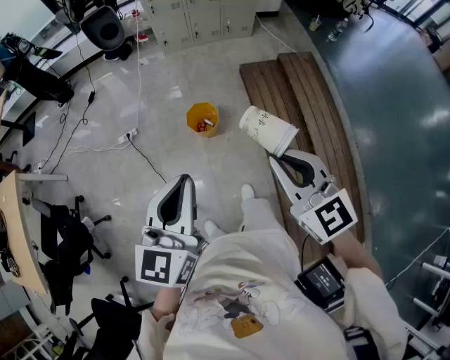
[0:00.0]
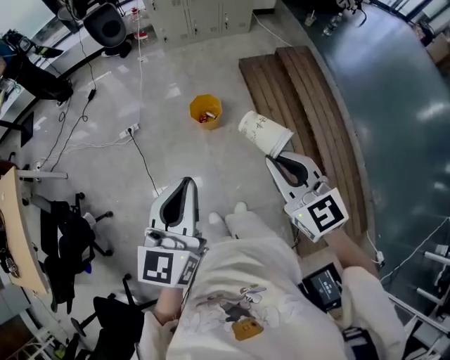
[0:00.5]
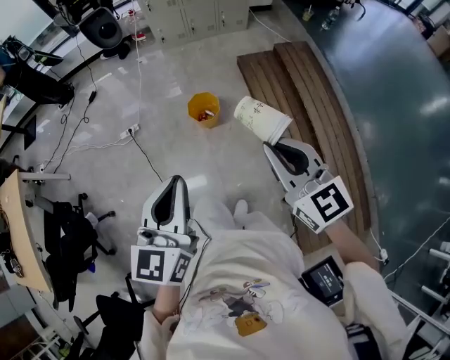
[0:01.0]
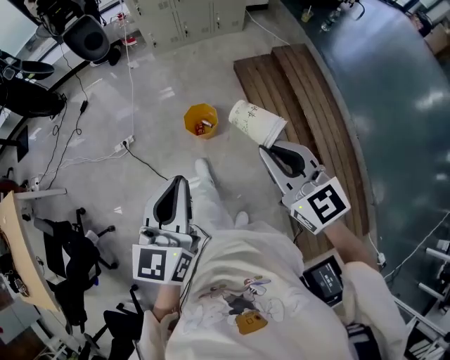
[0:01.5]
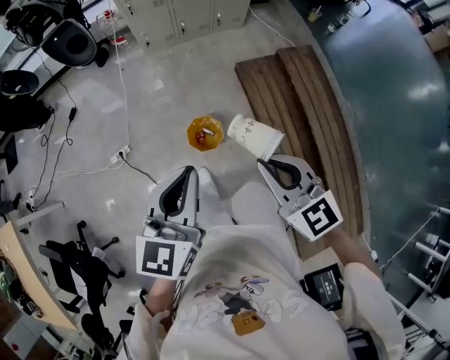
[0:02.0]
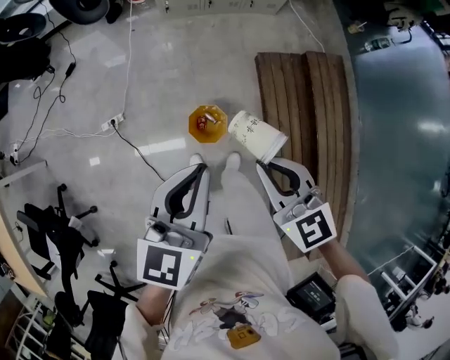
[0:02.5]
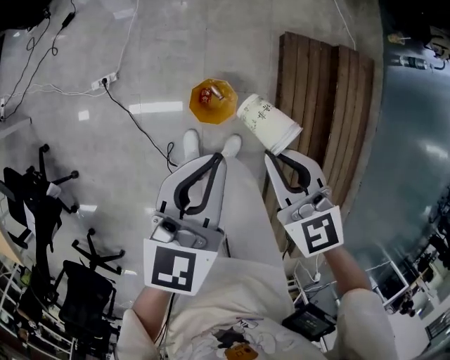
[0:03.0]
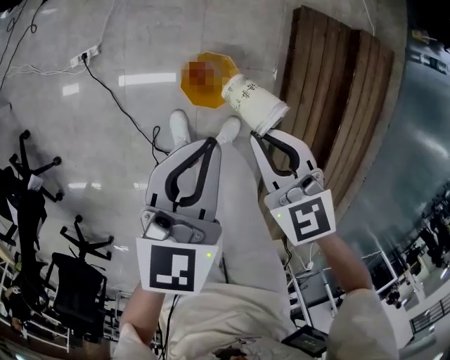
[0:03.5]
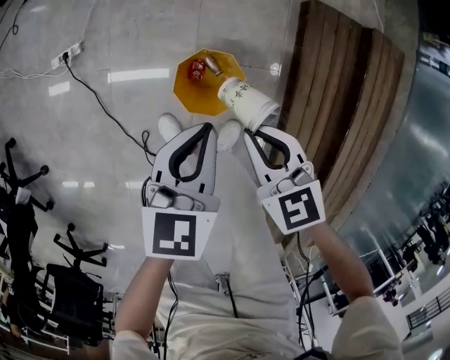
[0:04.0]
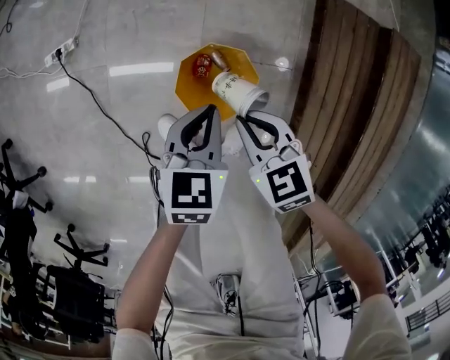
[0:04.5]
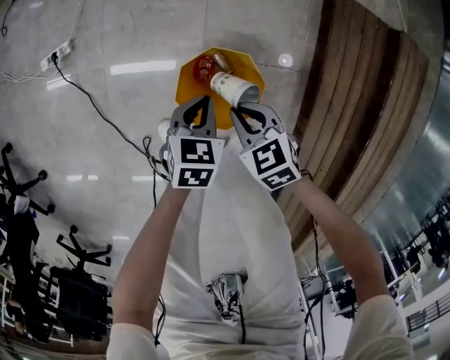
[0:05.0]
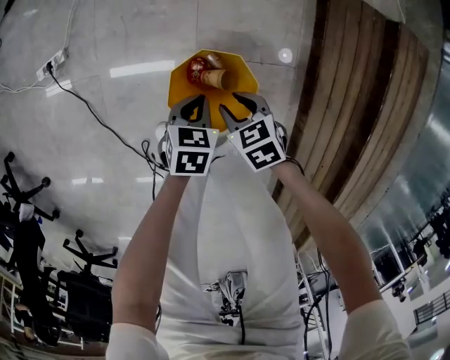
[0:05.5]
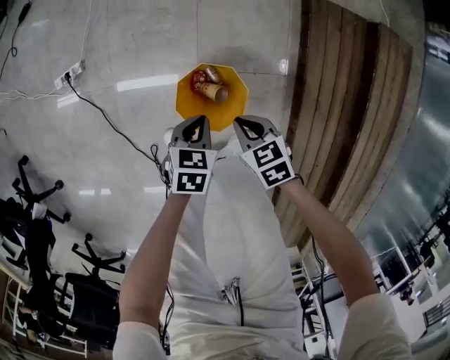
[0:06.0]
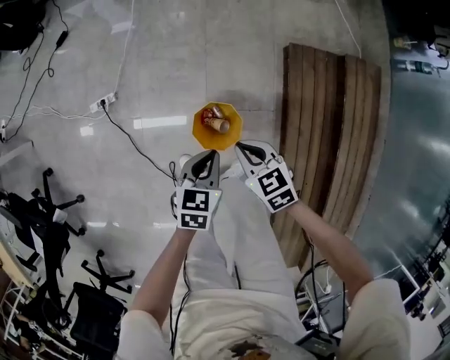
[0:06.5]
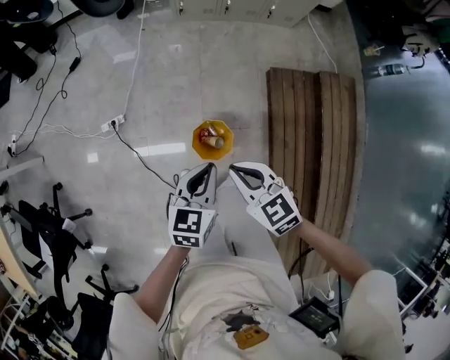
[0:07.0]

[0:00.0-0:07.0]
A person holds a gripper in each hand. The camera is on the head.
0:00.0 to 0:02.0: Both grippers travel together forward, about 30 cm.
0:02.0 to 0:03.5: The two grippers go approximately 40 cm downward and forward. The right gripper changes its angle by about 20 degrees, while the left gripper rotates roughly 20 degrees.
0:03.5 to 0:05.0: Both grippers move downward, approximately 40 cm. The left gripper rotates roughly 20 degrees. Meanwhile the right gripper rotates roughly 20 degrees.
0:05.0 to 0:07.0: The grippers both shift upward by roughly 50 cm. The right gripper turns by about 20 degrees, and opens, then closes once more; the left gripper rotates approximately 20 degrees.

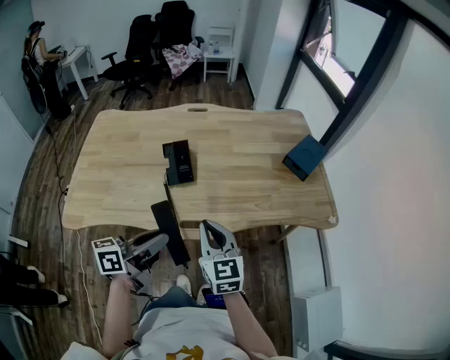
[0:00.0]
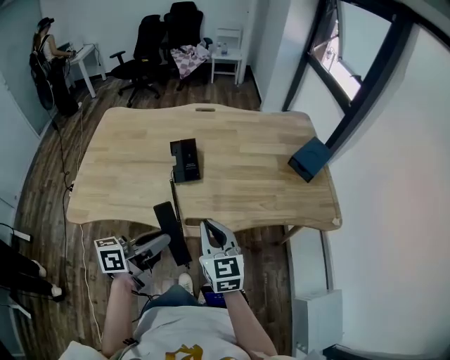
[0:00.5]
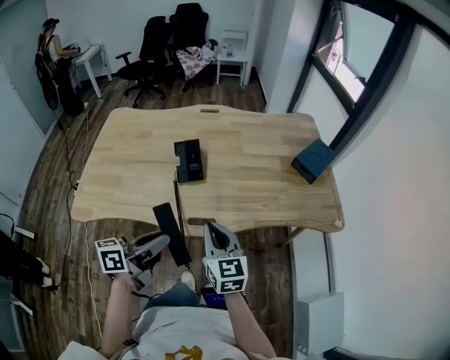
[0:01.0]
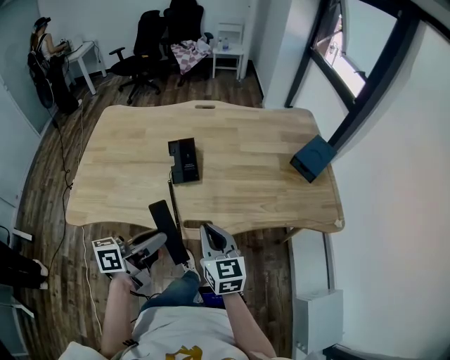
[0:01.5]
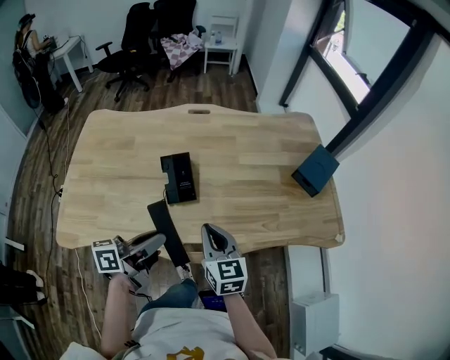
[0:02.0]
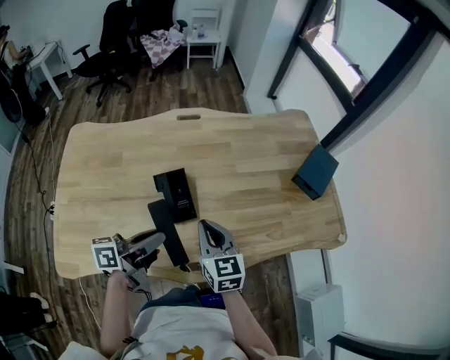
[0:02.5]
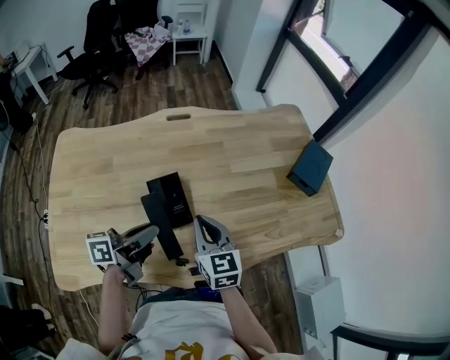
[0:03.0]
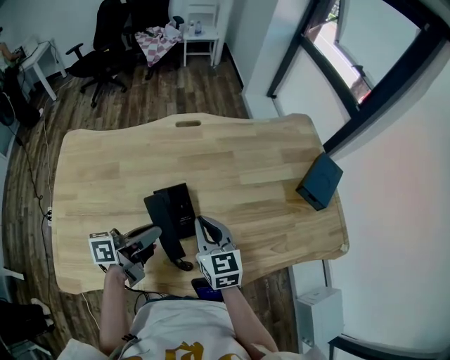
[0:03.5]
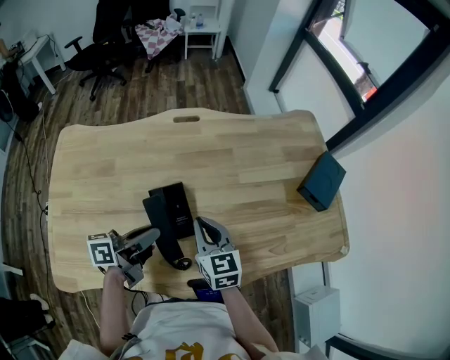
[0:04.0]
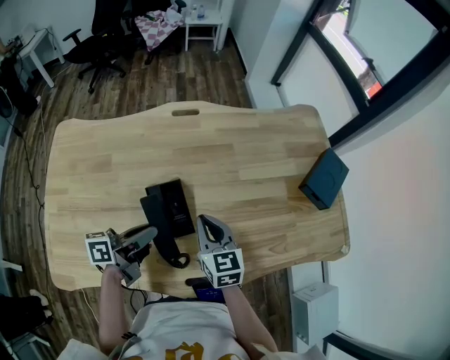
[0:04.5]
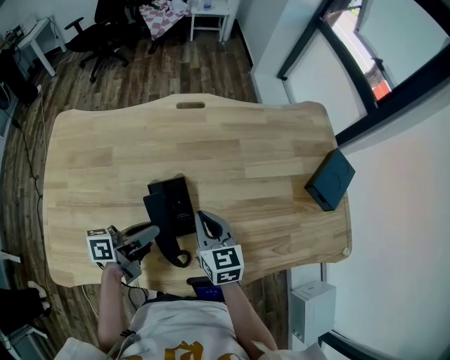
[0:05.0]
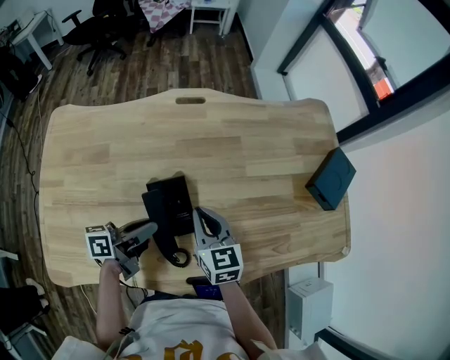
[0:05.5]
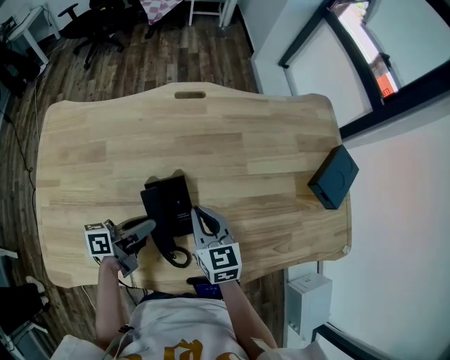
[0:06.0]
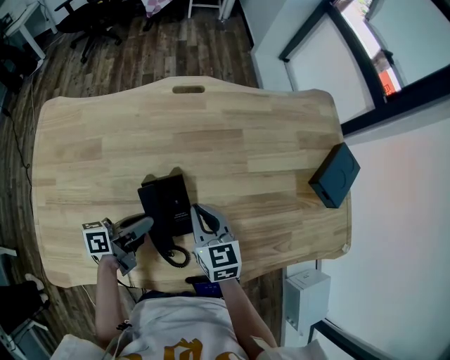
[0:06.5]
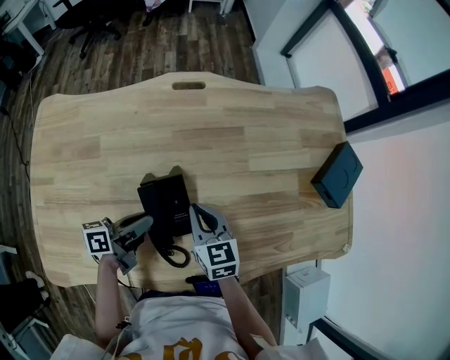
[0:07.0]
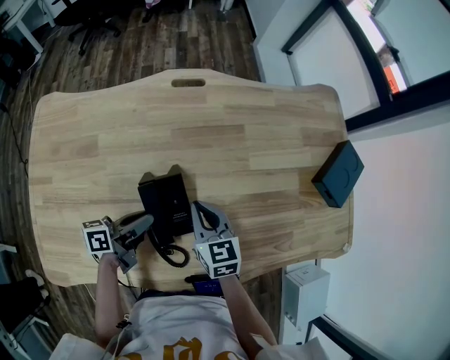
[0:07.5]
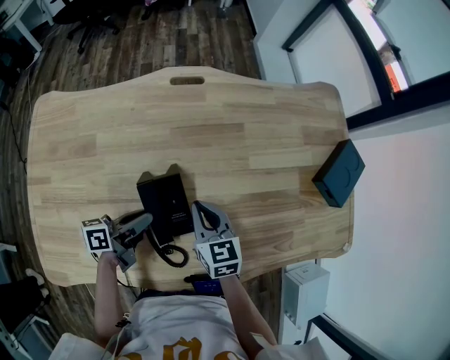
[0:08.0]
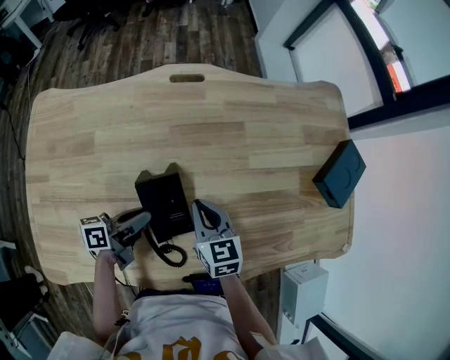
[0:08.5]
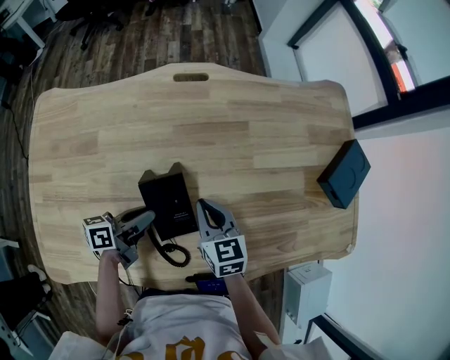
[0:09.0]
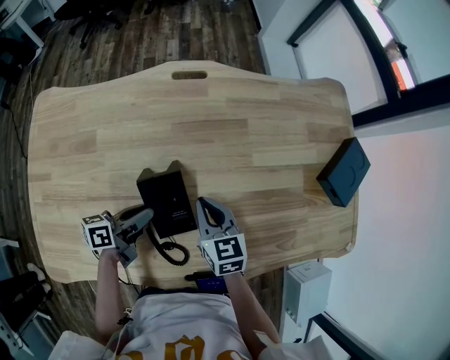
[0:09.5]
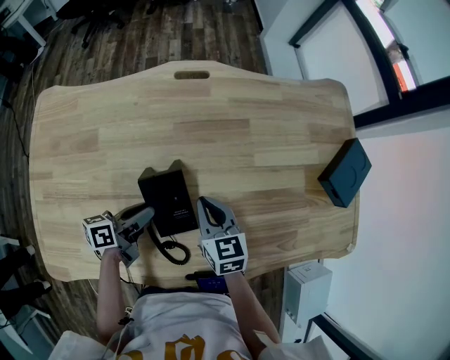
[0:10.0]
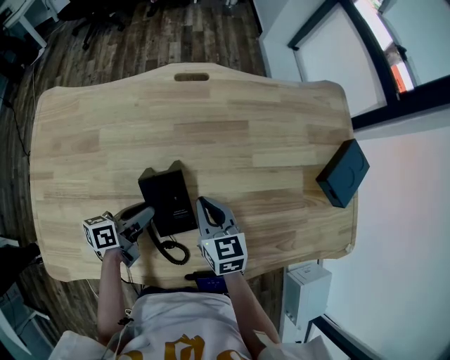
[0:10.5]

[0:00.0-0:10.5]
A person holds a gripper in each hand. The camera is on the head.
0:00.0 to 0:02.0: The left gripper is displaced forward and to the left by some 10 cm; the right gripper moves forward, about 10 cm.
0:02.0 to 0:04.0: Both grippers move forward and to the left, roughly 20 cm.
0:04.0 to 0:06.5: The right gripper is displaced downward by roughly 5 cm. The left gripper travels downward by roughly 10 cm.
0:06.5 to 0:10.5: The grippers move only a little.

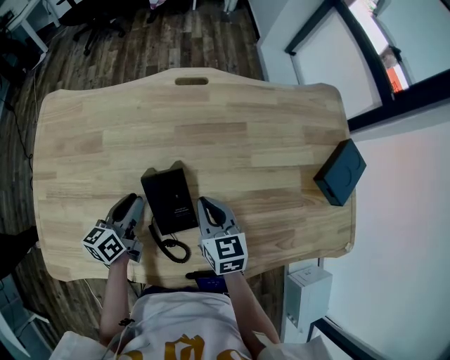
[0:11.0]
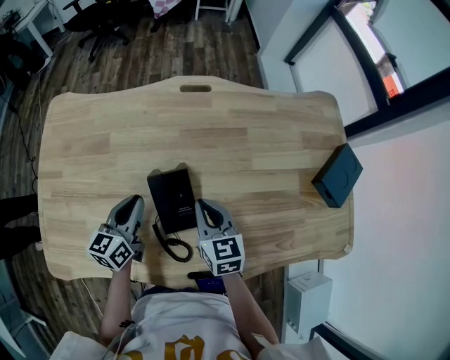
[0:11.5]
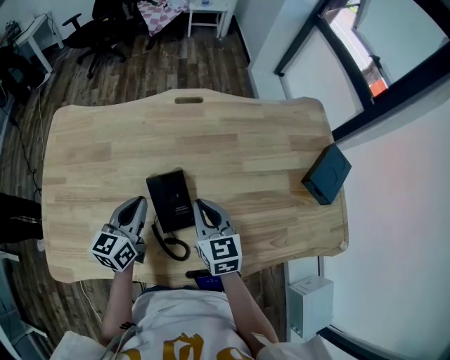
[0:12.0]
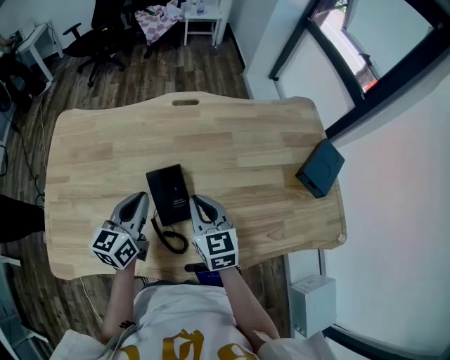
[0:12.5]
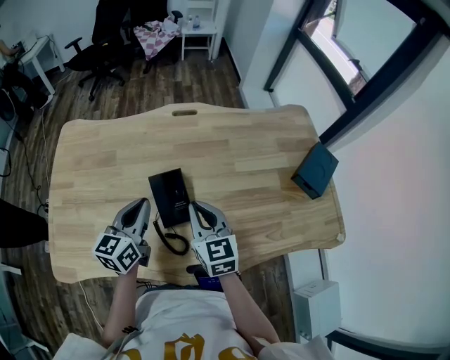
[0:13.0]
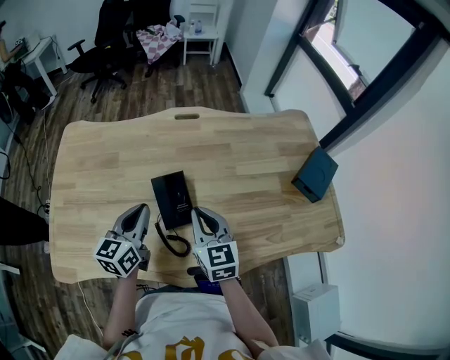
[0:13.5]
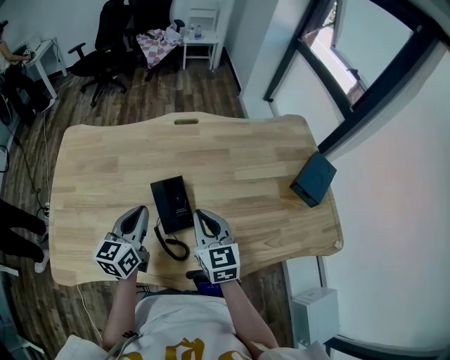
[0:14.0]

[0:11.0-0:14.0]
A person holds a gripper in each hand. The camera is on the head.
0:11.0 to 0:12.5: The grippers both shift upward by approximately 10 cm. The left gripper rotates roughly 20 degrees, and closes up.
0:12.5 to 0:14.0: The grippers make only small movements.

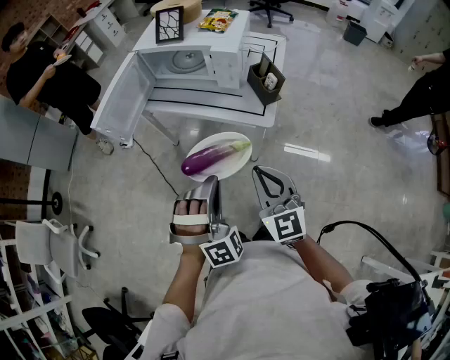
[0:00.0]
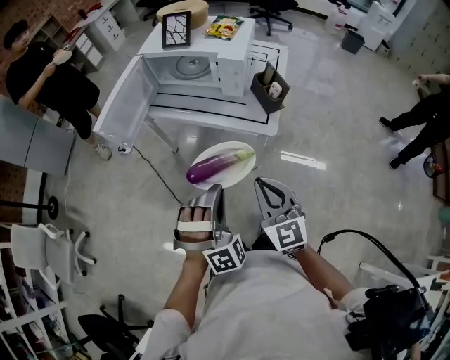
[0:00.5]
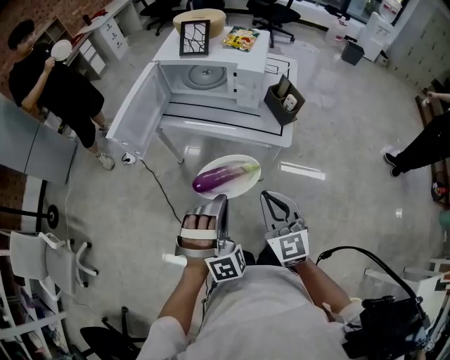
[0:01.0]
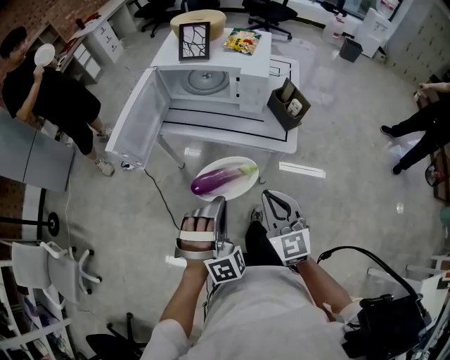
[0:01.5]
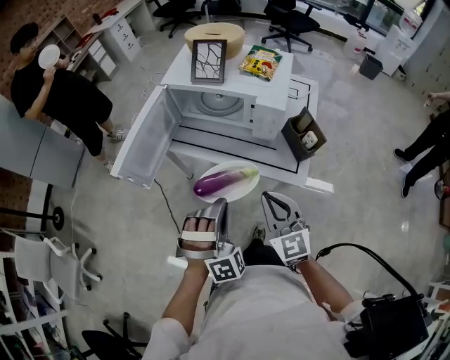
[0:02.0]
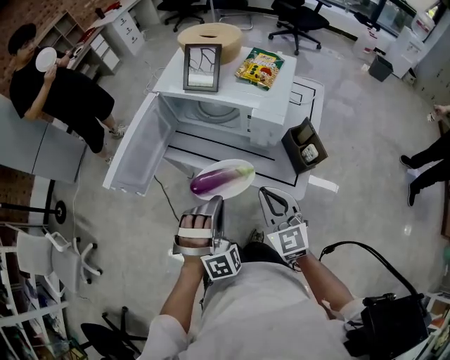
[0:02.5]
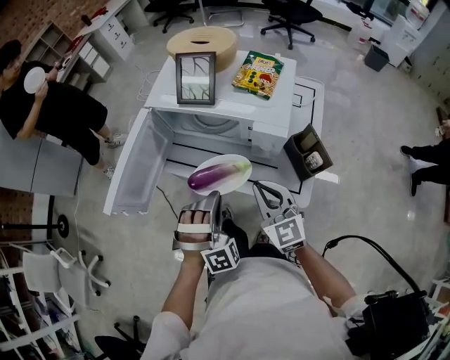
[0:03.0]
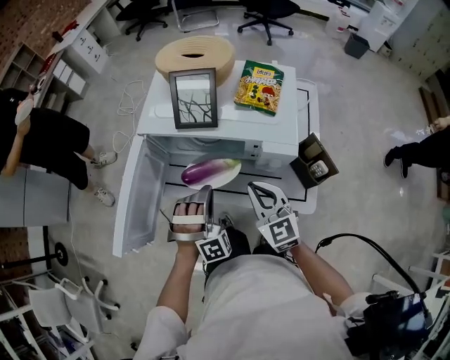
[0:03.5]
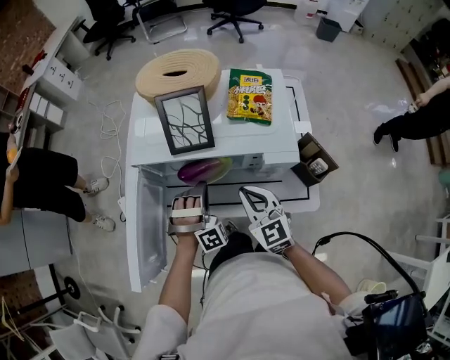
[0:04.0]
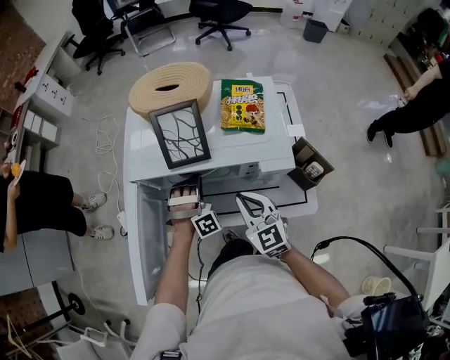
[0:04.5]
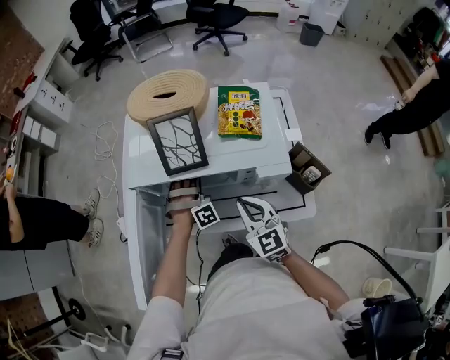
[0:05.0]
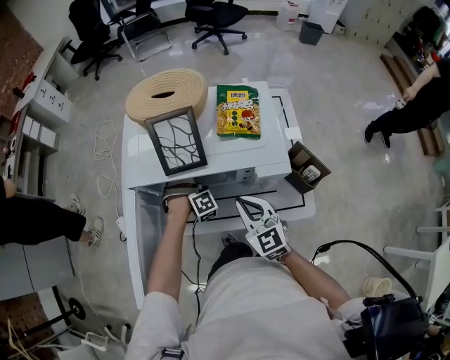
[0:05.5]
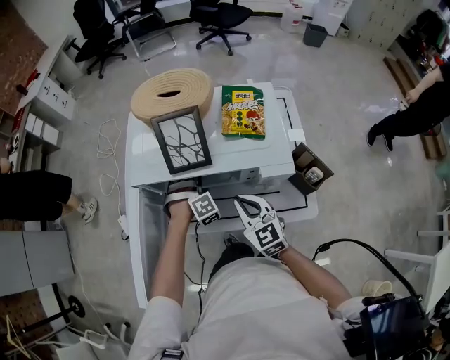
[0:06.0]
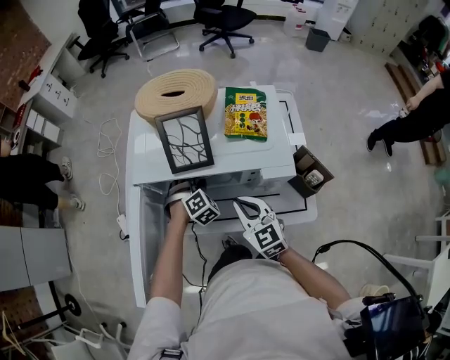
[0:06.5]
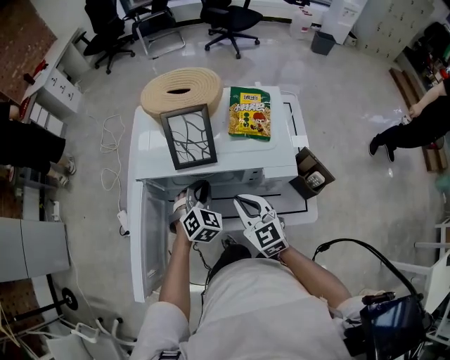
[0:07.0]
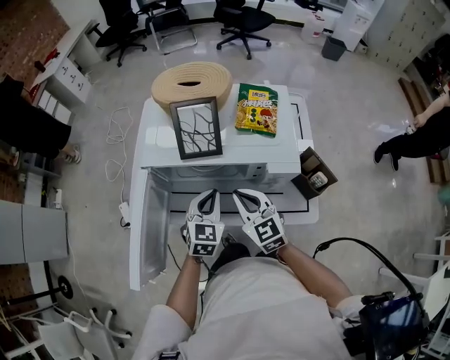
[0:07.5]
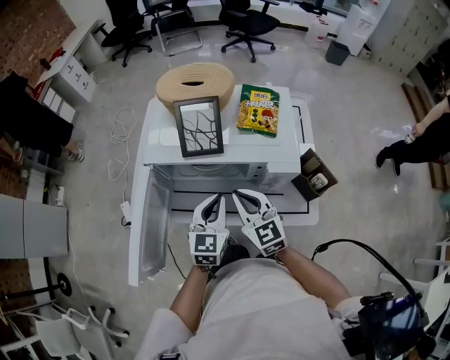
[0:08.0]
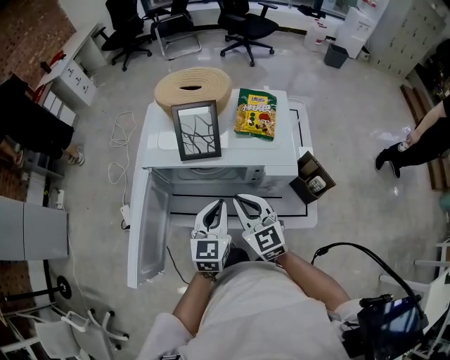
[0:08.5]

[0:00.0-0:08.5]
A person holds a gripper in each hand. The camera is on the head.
0:00.0 to 0:02.0: Both grippers travel together forward, roughly 15 cm.
0:02.0 to 0:04.0: The grippers both shift forward by approximately 30 cm.
0:04.0 to 0:06.5: The left gripper travels forward and downward by roughly 10 cm, swivels about 30 degrees, and opens.
0:06.5 to 0:08.5: The left gripper heads upward and backward, covering approximately 20 cm, rolls counterclockwise, seen from behind, by some 60 degrees, and closes up.
